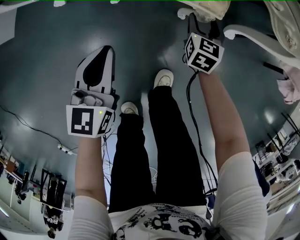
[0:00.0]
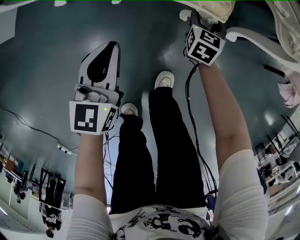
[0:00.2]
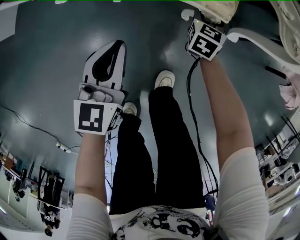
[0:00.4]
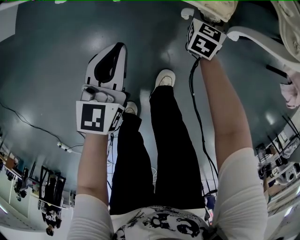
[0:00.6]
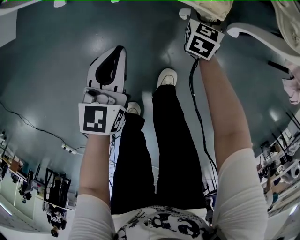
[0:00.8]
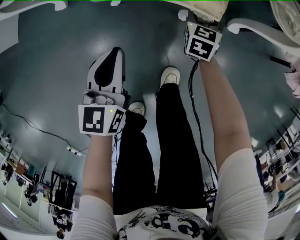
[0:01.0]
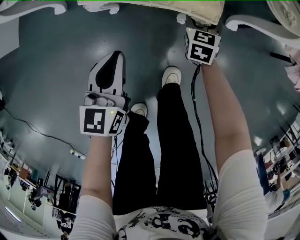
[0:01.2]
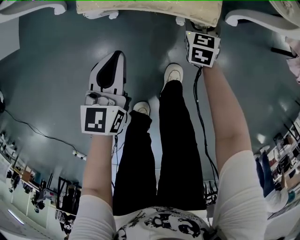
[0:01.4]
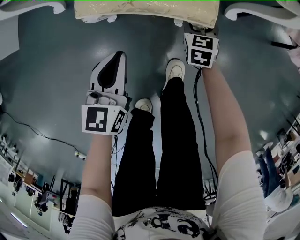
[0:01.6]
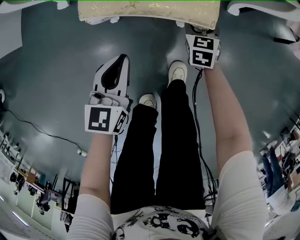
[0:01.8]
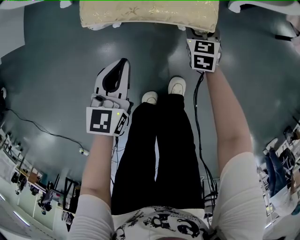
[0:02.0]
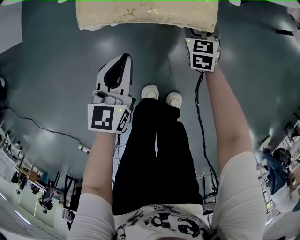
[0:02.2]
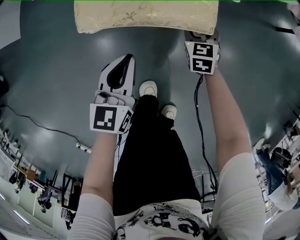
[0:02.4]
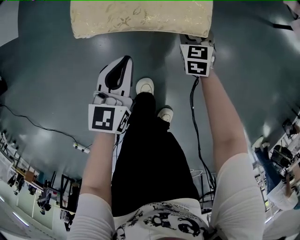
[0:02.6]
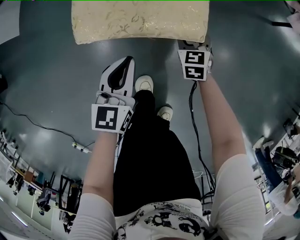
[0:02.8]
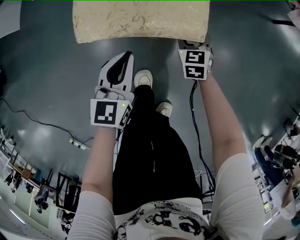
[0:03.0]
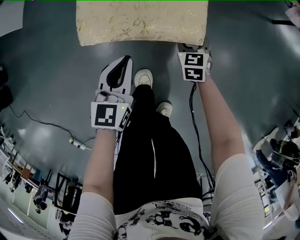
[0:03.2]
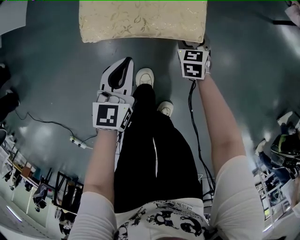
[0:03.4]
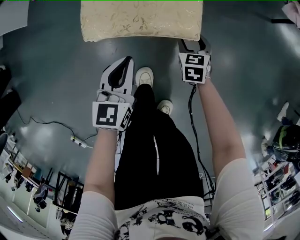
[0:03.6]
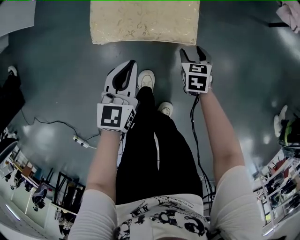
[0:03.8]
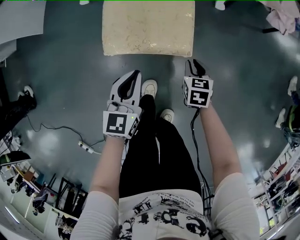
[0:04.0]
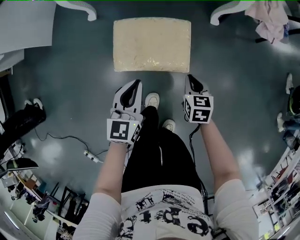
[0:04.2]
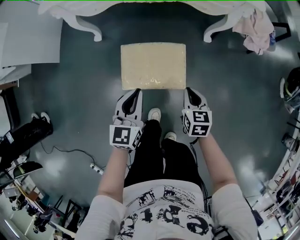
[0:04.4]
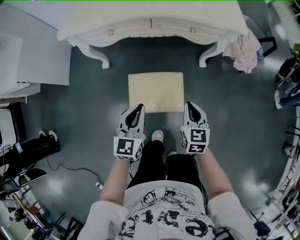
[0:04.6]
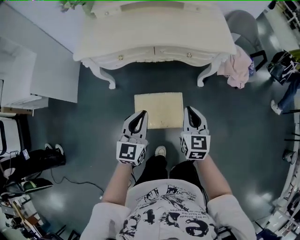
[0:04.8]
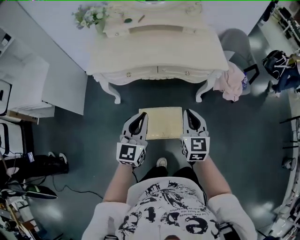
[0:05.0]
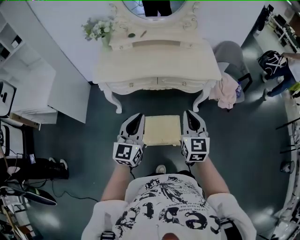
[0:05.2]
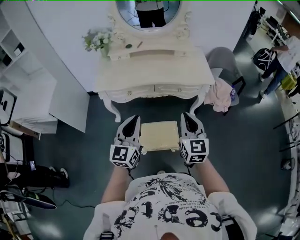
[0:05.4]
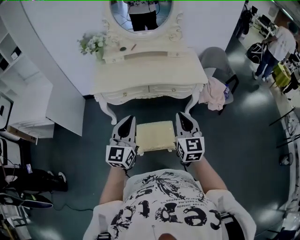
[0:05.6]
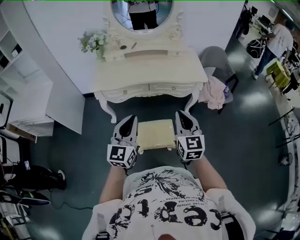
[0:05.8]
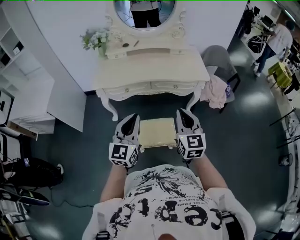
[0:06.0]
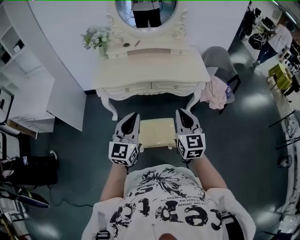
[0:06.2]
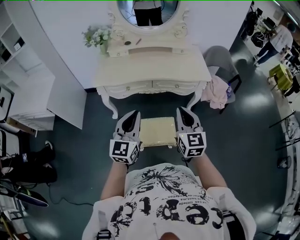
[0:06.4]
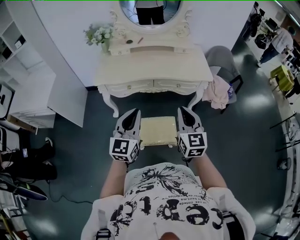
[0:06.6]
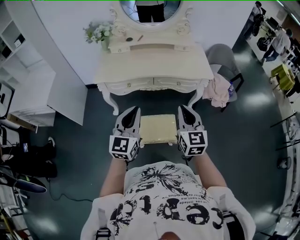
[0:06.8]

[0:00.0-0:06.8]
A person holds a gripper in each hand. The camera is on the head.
0:00.0 to 0:01.4: The right gripper moves approximately 5 cm.
0:01.4 to 0:02.8: Both grippers move backward, approximately 25 cm.
0:02.8 to 0:04.0: The right gripper goes some 15 cm upward and backward, and closes its fingers; the left gripper moves upward, some 15 cm.
0:04.0 to 0:05.4: The grippers both shift upward by some 60 cm. The right gripper angles its fingers upward, by approximately 50 degrees. Meanwhile the left gripper turns by roughly 30 degrees.
0:05.4 to 0:06.8: There are only small adjustments of the grippers.

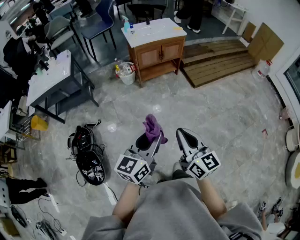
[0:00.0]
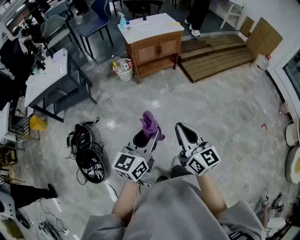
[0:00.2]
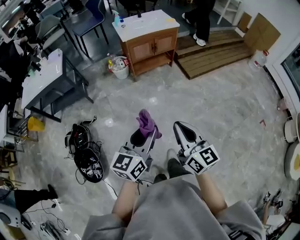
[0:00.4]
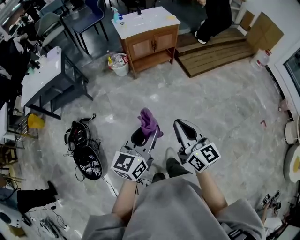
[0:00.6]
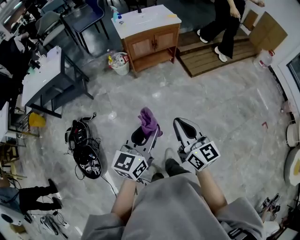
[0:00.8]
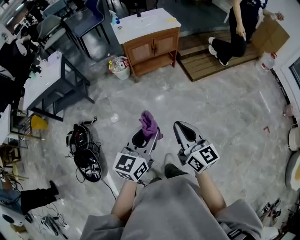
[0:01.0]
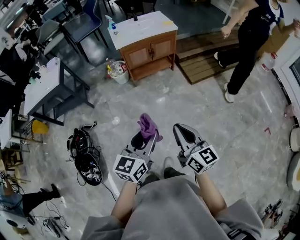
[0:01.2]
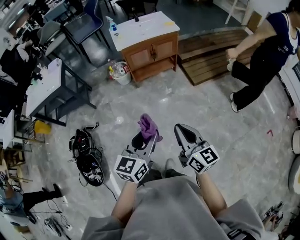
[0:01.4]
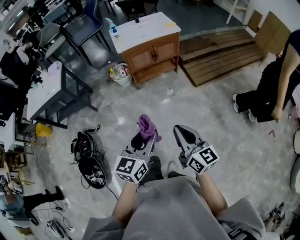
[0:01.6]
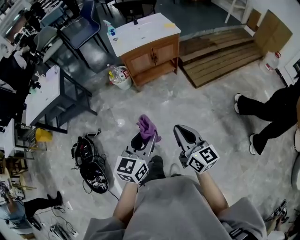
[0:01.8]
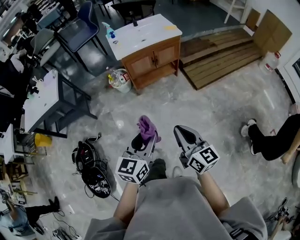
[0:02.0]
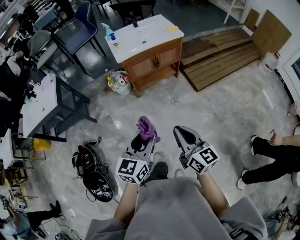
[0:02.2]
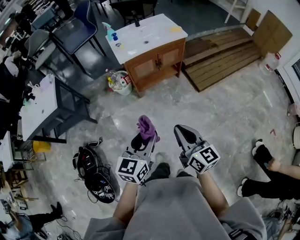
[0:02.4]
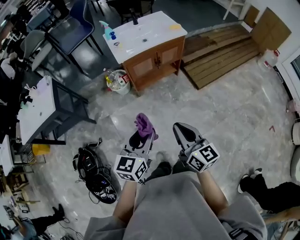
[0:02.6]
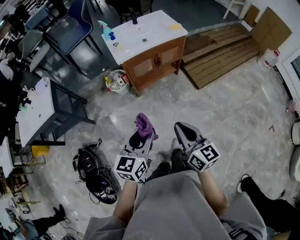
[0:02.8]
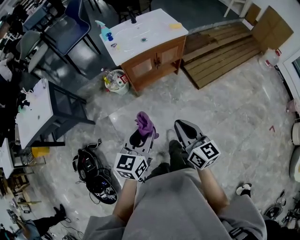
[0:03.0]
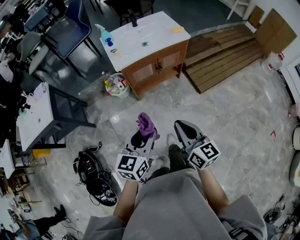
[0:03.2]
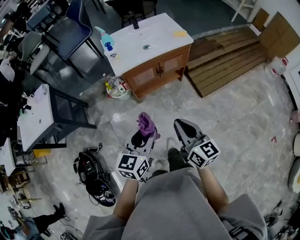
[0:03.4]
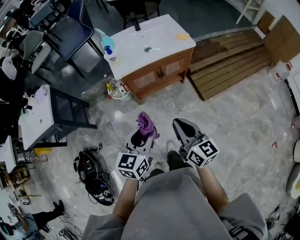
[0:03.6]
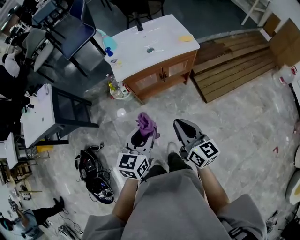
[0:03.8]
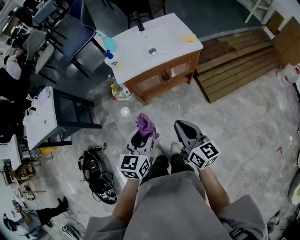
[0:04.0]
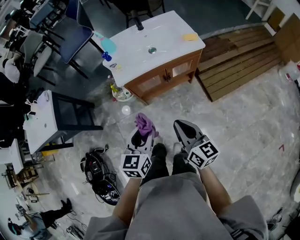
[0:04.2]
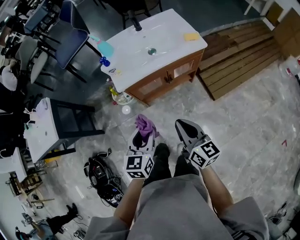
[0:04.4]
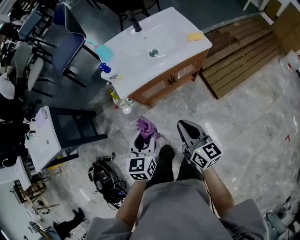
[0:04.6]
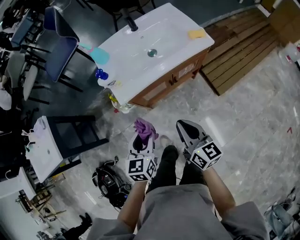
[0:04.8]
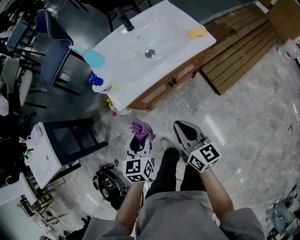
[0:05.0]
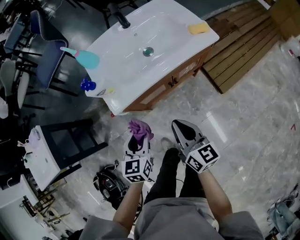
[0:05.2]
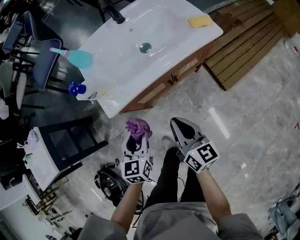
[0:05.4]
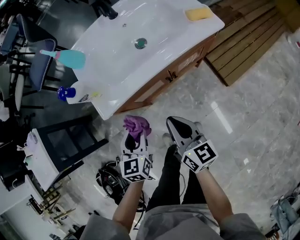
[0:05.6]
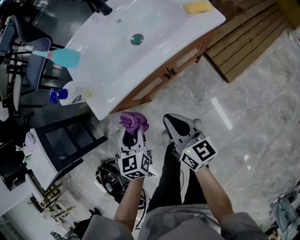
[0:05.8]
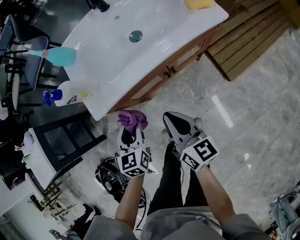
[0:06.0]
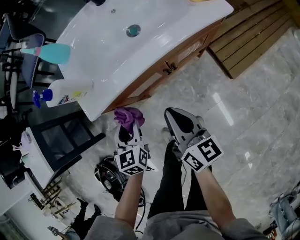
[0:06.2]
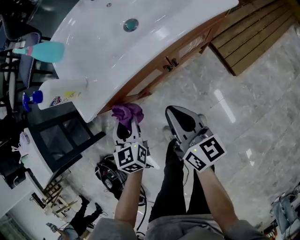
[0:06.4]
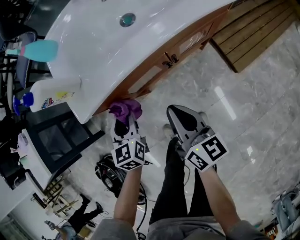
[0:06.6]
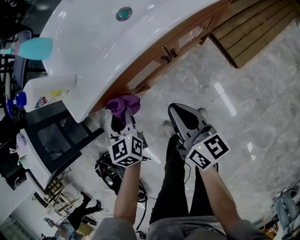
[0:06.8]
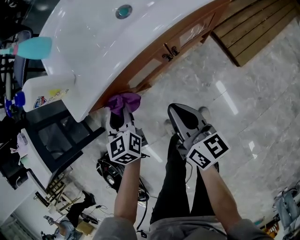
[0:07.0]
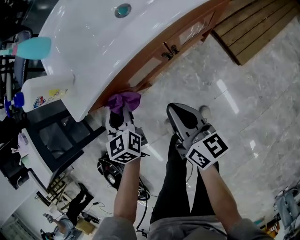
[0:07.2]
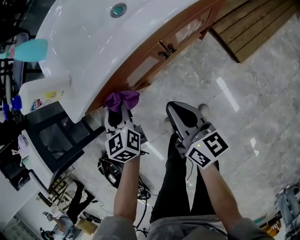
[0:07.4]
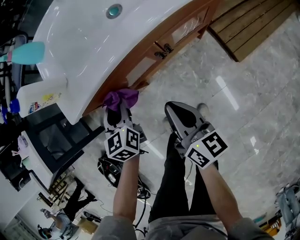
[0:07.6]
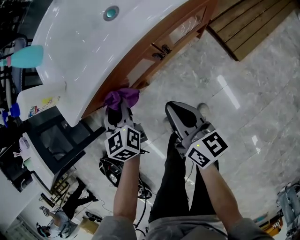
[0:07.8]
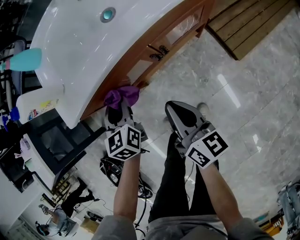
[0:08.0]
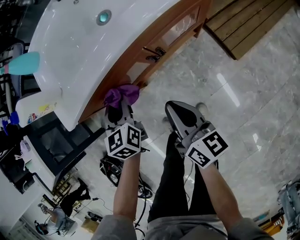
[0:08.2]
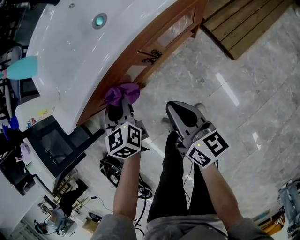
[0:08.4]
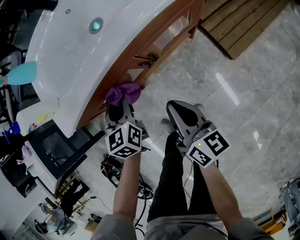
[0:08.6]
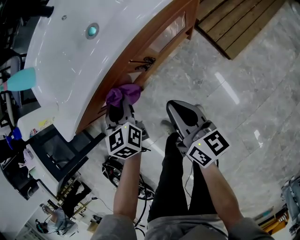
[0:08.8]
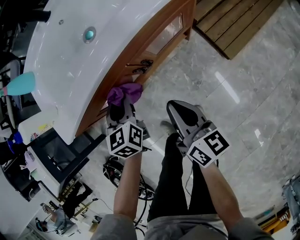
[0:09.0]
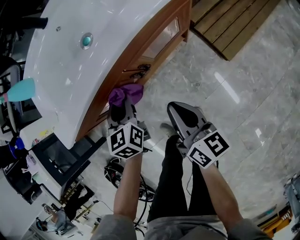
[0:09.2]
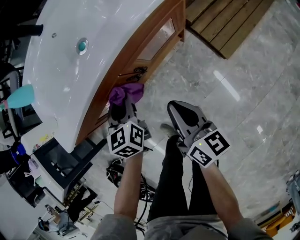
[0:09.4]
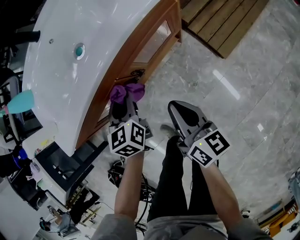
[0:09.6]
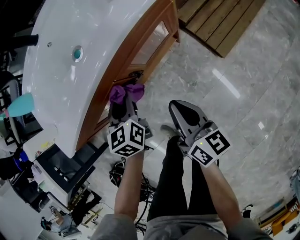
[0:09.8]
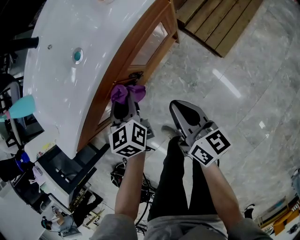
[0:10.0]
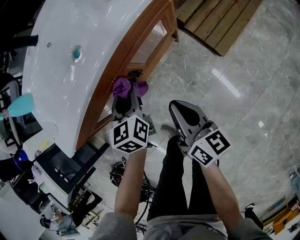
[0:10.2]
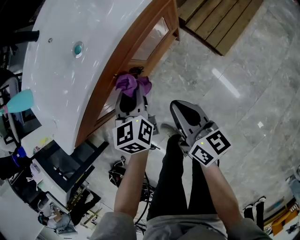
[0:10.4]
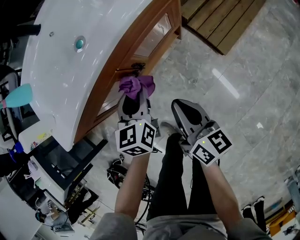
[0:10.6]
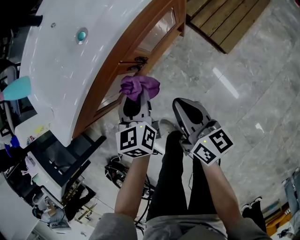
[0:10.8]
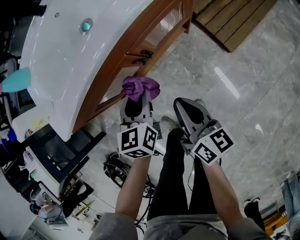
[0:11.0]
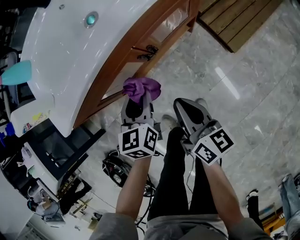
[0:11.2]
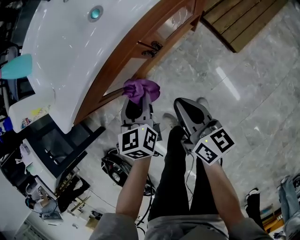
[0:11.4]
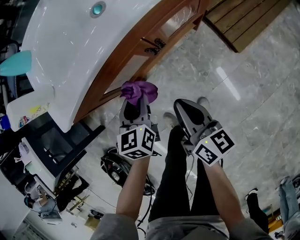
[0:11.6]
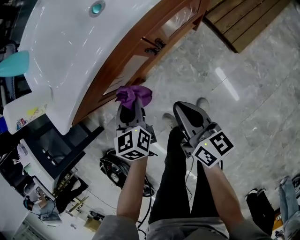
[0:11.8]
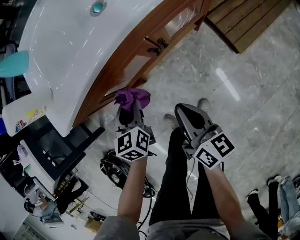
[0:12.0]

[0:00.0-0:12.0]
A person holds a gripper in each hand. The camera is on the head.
0:00.0 to 0:01.6: The grippers both shift forward and to the right by some 20 cm.
0:01.6 to 0:03.0: Both grippers travel together forward and to the left, some 25 cm.
0:03.0 to 0:04.4: Both grippers move forward, approximately 25 cm.
0:04.4 to 0:06.0: The grippers both shift downward and forward by some 25 cm.
0:06.0 to 0:07.6: The right gripper is displaced downward by about 10 cm, while the left gripper goes roughly 10 cm downward and forward.
0:07.6 to 0:09.0: Both grippers move to the right, approximately 10 cm.
0:09.0 to 0:10.4: The left gripper shifts some 10 cm to the right.
0:10.4 to 0:12.0: The right gripper goes approximately 10 cm to the left; the left gripper is displaced to the left, backward and downward by some 20 cm.

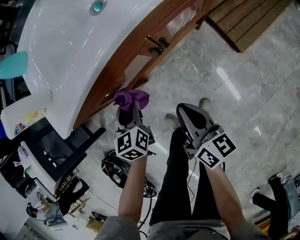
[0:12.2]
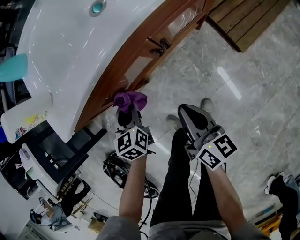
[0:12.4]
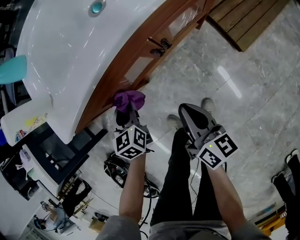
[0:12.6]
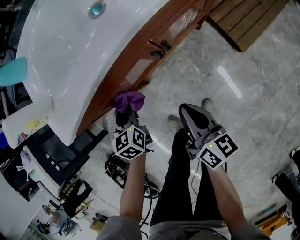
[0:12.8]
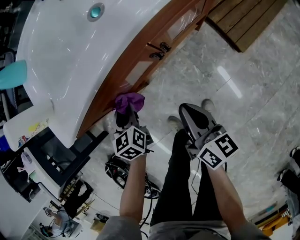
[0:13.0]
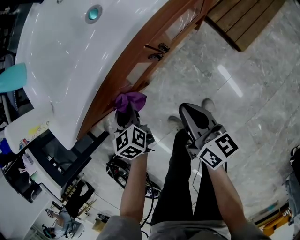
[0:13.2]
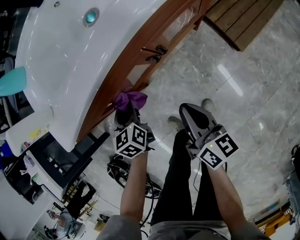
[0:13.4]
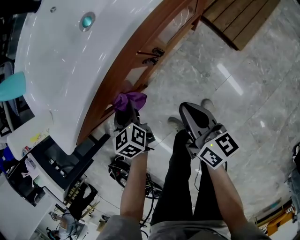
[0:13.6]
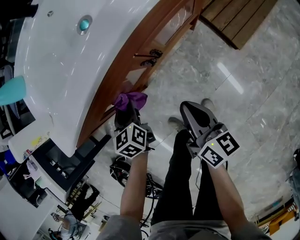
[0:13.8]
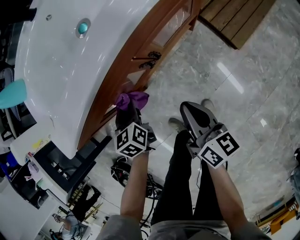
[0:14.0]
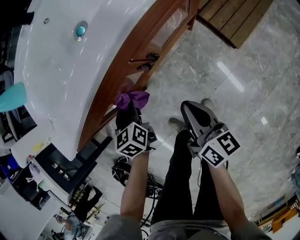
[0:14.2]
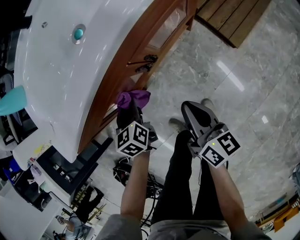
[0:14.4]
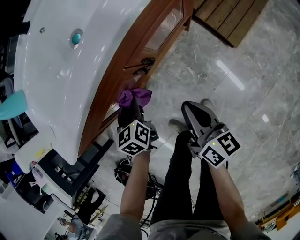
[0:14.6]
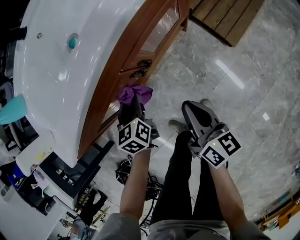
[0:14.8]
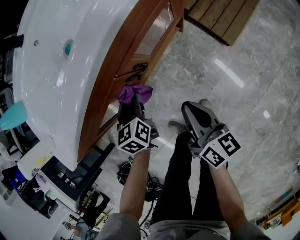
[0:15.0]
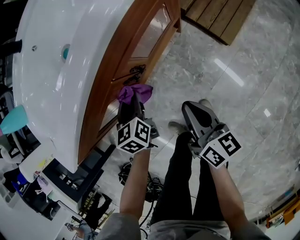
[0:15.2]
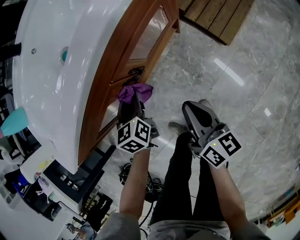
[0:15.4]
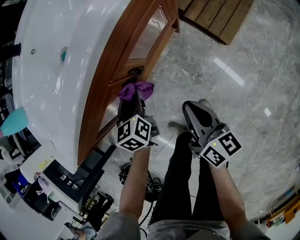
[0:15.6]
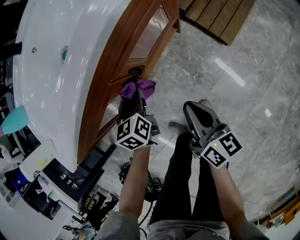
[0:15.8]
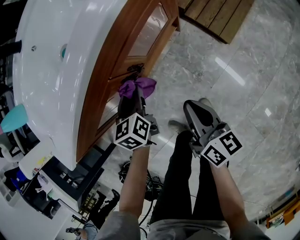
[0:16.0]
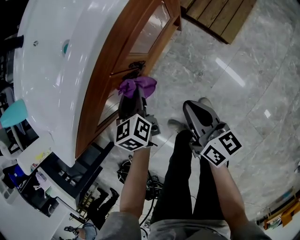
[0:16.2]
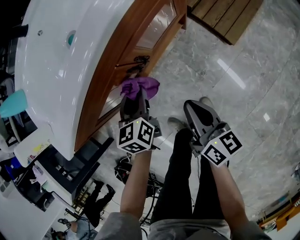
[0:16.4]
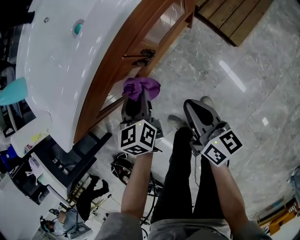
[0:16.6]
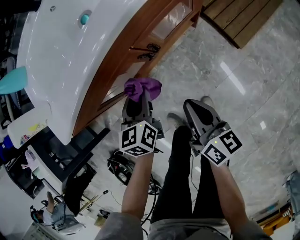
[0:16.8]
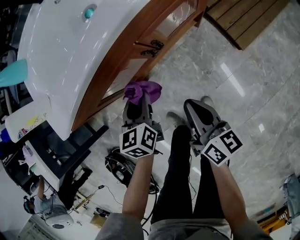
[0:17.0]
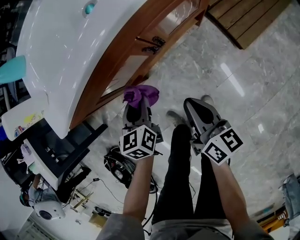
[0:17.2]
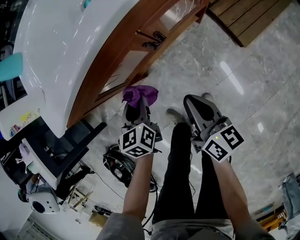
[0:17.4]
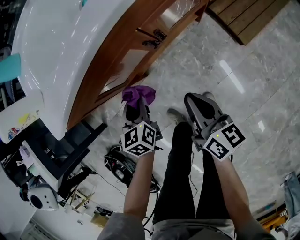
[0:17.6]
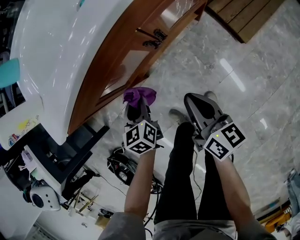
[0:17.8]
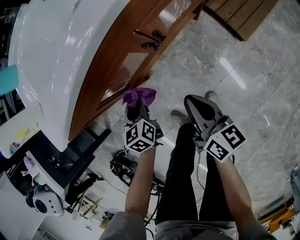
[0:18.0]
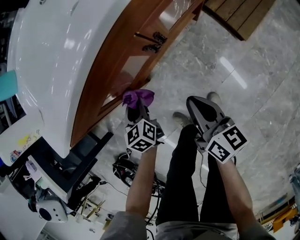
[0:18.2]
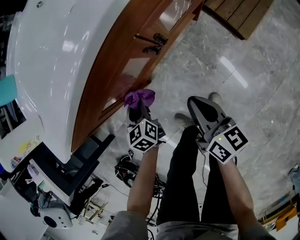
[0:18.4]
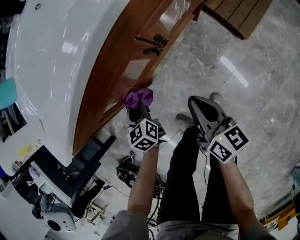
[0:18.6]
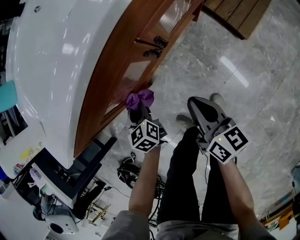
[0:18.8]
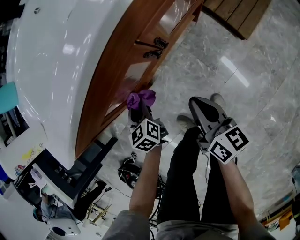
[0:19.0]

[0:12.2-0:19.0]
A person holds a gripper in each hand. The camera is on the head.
0:12.2 to 0:13.6: There are only small adjustments of the grippers.
0:13.6 to 0:15.0: The left gripper is displaced to the right by some 10 cm. Meanwhile the right gripper heads to the right, covering roughly 5 cm.
0:15.0 to 0:16.2: The grippers stay close to where they were, moving slightly.
0:16.2 to 0:17.6: The right gripper moves to the left, about 5 cm. The left gripper moves to the left and backward, some 15 cm.
0:17.6 to 0:19.0: The left gripper goes roughly 10 cm downward.
